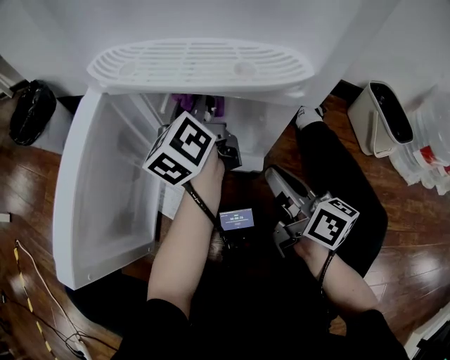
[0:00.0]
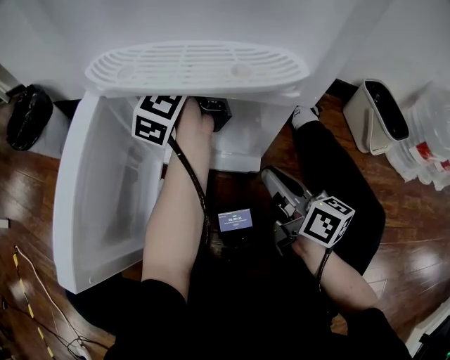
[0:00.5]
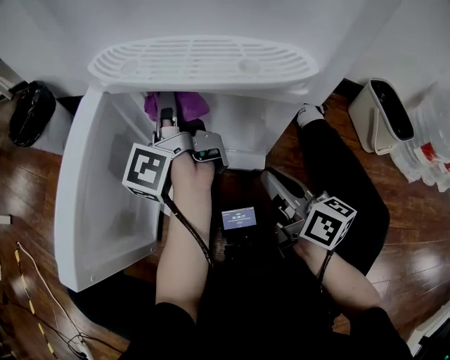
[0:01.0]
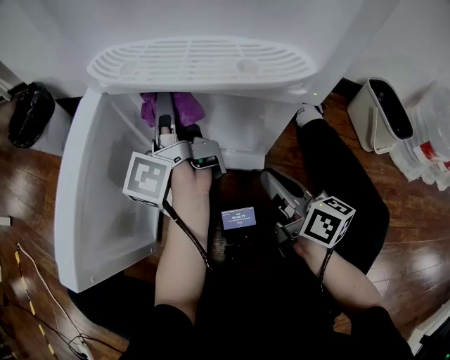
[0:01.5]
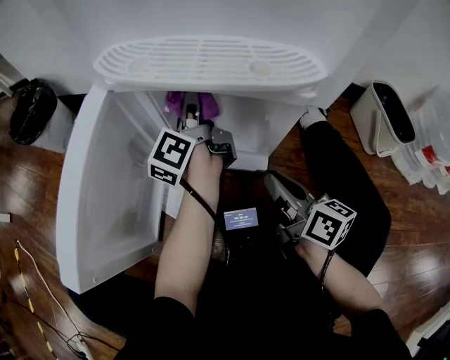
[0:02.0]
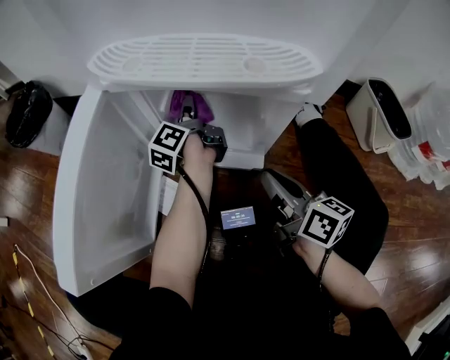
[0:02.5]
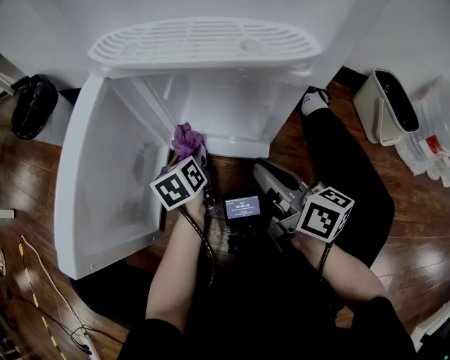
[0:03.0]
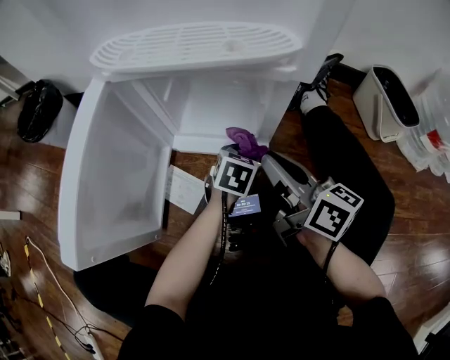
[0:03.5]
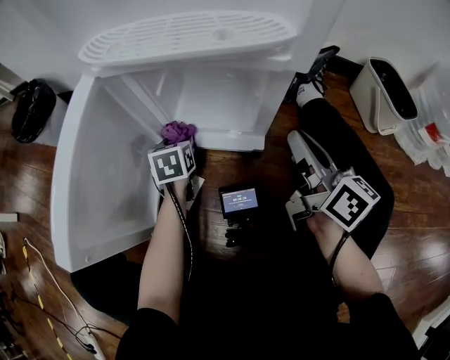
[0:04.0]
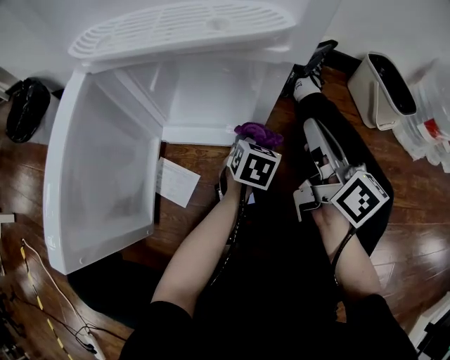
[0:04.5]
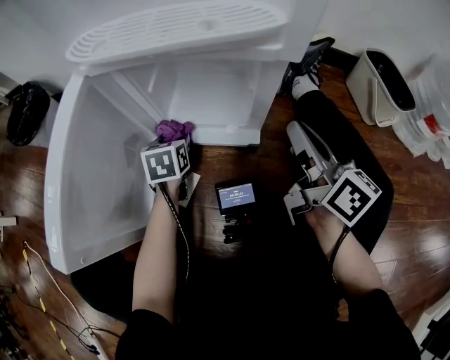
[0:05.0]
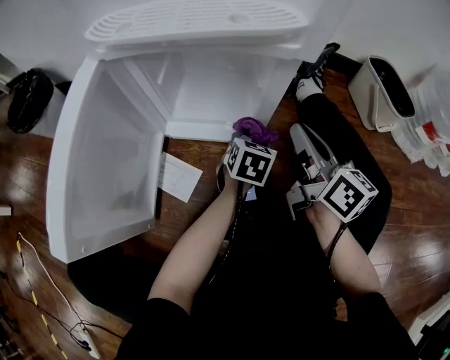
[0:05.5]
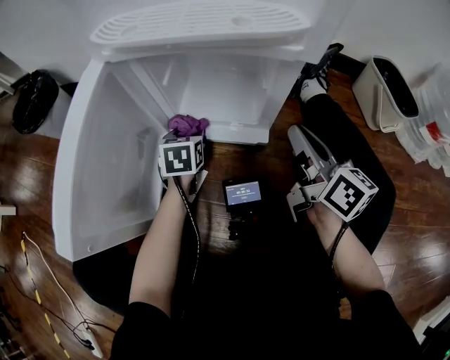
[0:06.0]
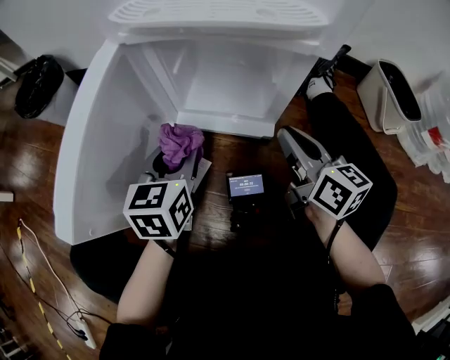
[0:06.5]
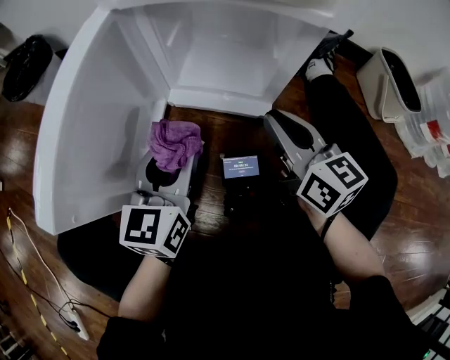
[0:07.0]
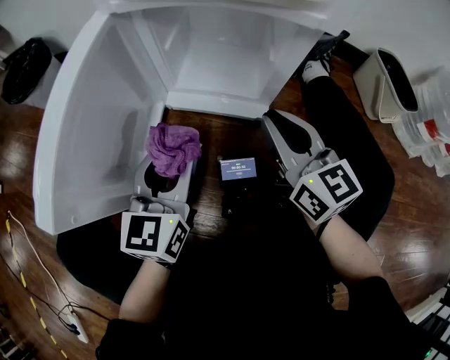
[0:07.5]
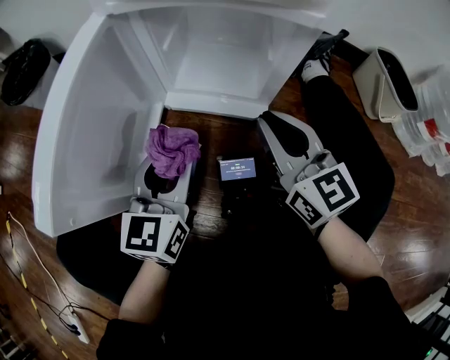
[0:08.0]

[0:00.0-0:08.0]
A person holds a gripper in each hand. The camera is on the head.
0.0 to 2.0 s: The left gripper heads downward, covering some 5 cm, moves approximately 10 cm forward and comes back, and rotates approximately 30 degrees.
2.0 to 4.0 s: The left gripper heads downward and backward, covering some 20 cm, and tips its fingers downward by about 50 degrees; the right gripper shifts about 10 cm upward and to the right.
4.0 to 6.0 s: The left gripper swings left and right, about 25 cm each way, with 3 reversals.
6.0 to 8.0 s: The right gripper shifts roughly 10 cm to the left, and changes its angle by some 30 degrees; the left gripper travels upward and backward by some 20 cm, and points its fingers about 30 degrees further upward.

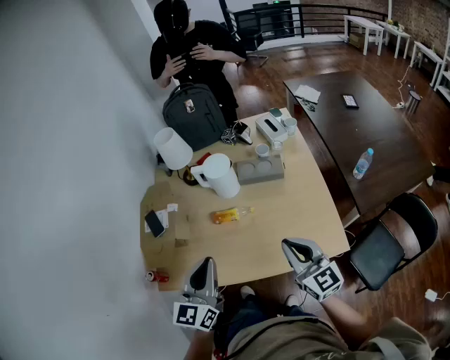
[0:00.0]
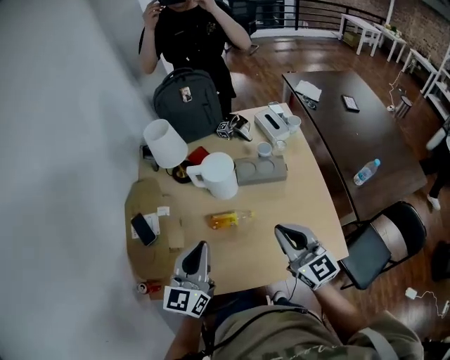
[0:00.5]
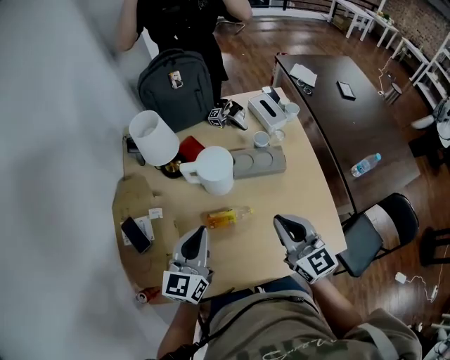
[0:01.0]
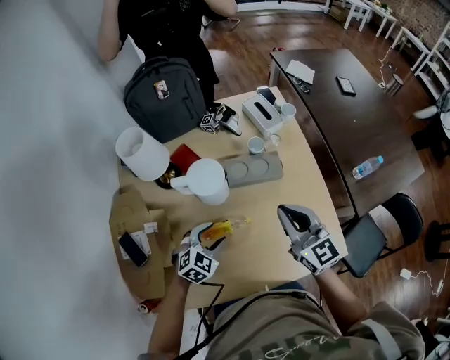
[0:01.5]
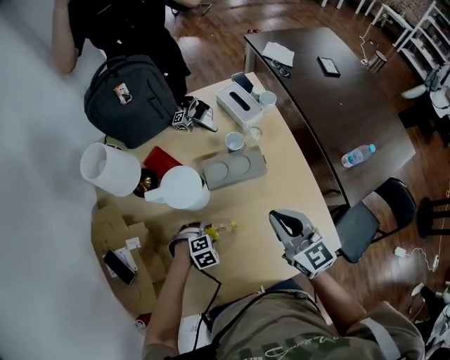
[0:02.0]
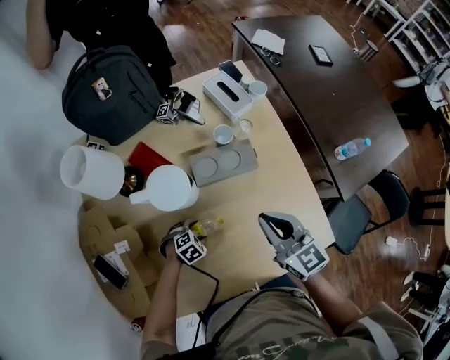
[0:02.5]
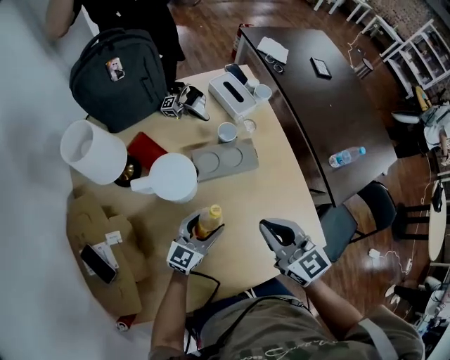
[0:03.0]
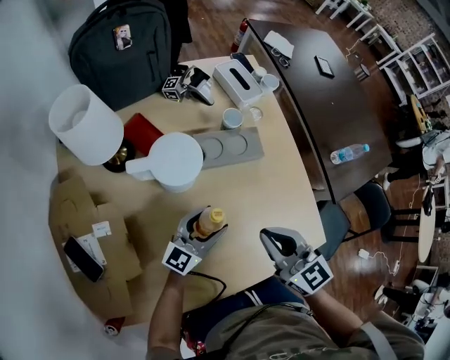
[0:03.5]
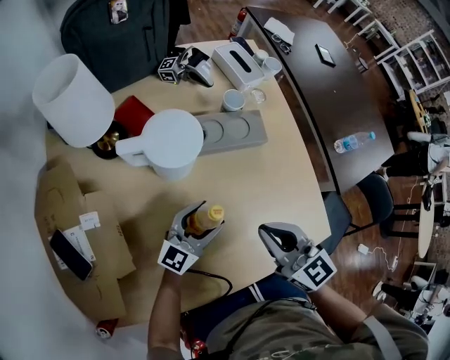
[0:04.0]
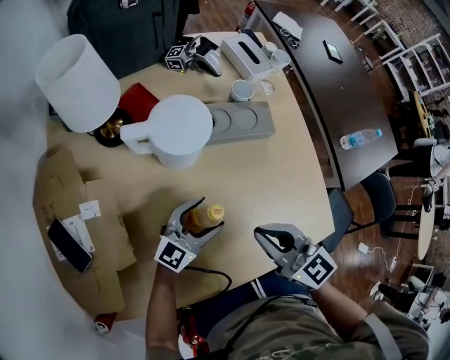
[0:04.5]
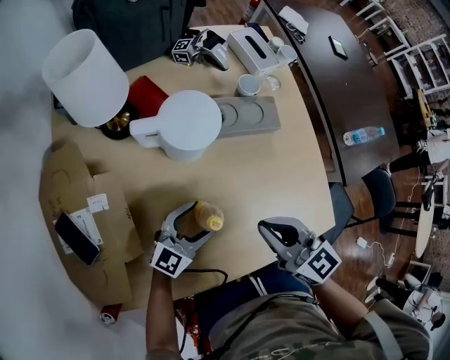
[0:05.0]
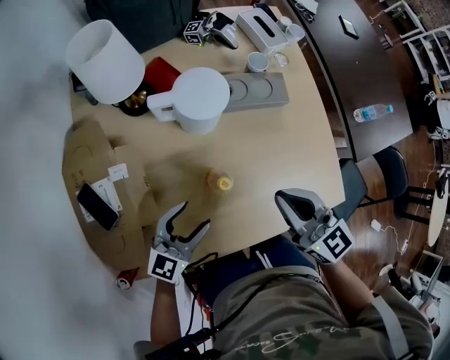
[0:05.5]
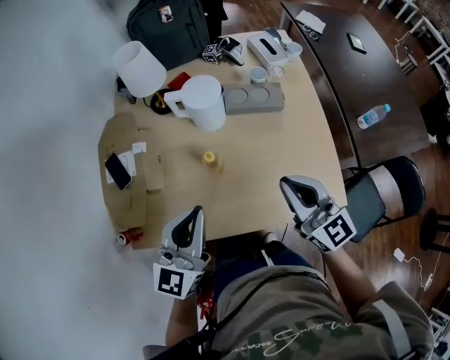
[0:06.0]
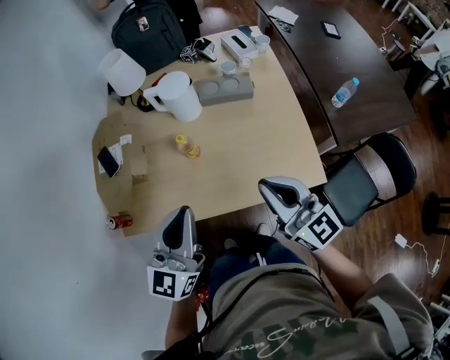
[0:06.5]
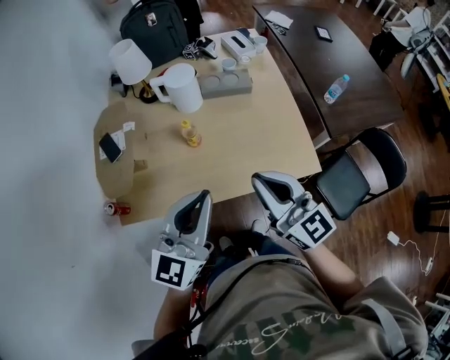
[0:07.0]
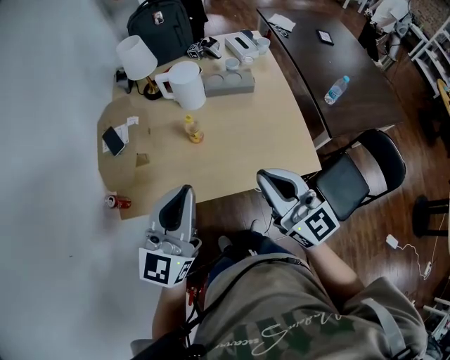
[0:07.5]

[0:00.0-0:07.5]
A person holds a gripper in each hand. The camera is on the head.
0.0 to 2.0 s: The left gripper heads downward, covering approximately 40 cm, tips its fingers downward by some 70 degrees, and opens its fingers, while the right gripper moves approximately 25 cm.
2.0 to 4.0 s: The left gripper shifts about 10 cm upward, and tips its fingers upward by about 80 degrees, while the right gripper changes place by some 15 cm.
4.0 to 5.5 s: The right gripper travels upward by about 5 cm; the left gripper travels to the left, backward and upward by roughly 15 cm.
5.5 to 7.5 s: The left gripper is displaced upward and backward by approximately 40 cm, changes its angle by roughly 30 degrees, and closes. Meanwhile the right gripper goes approximately 30 cm backward and upward.

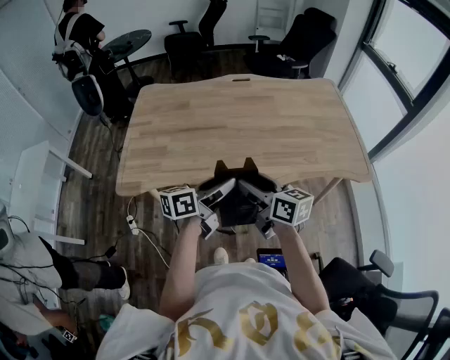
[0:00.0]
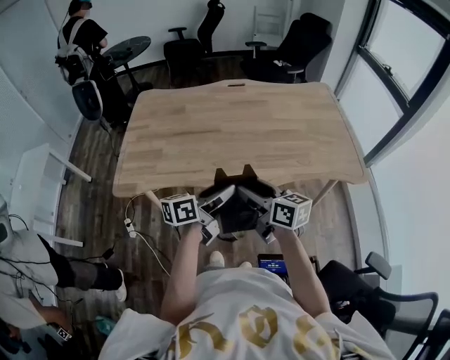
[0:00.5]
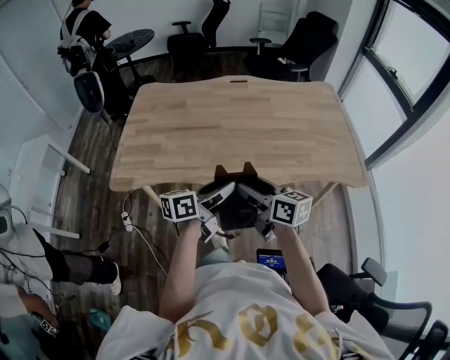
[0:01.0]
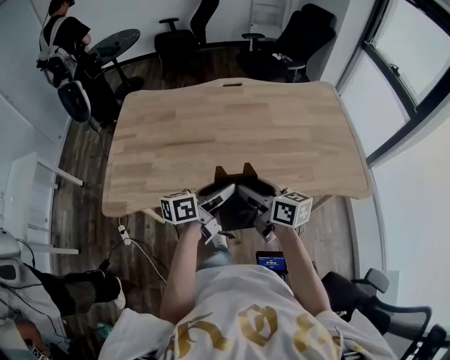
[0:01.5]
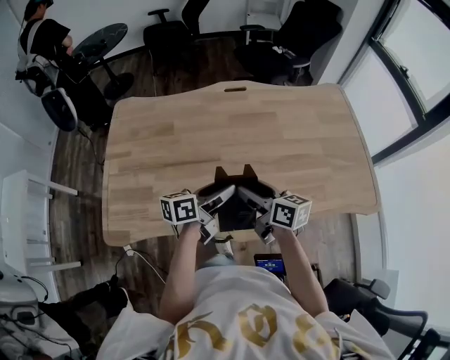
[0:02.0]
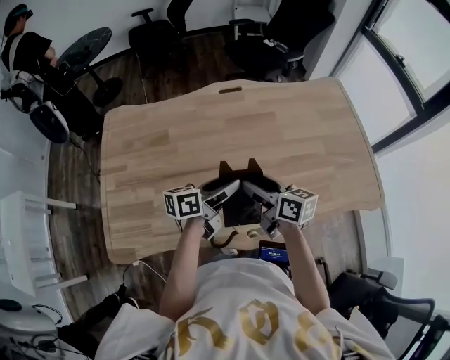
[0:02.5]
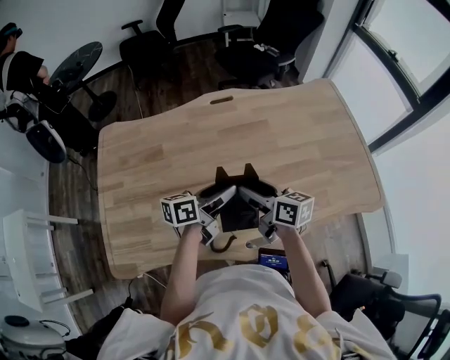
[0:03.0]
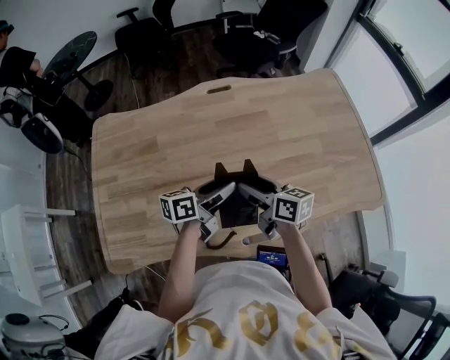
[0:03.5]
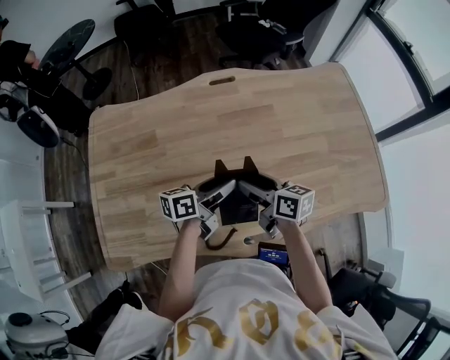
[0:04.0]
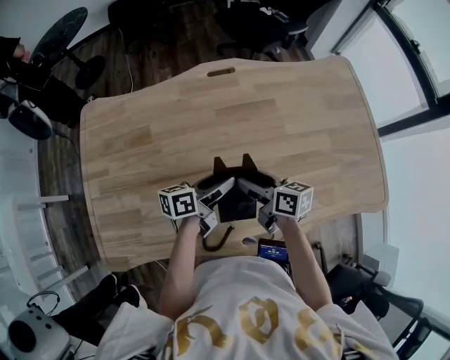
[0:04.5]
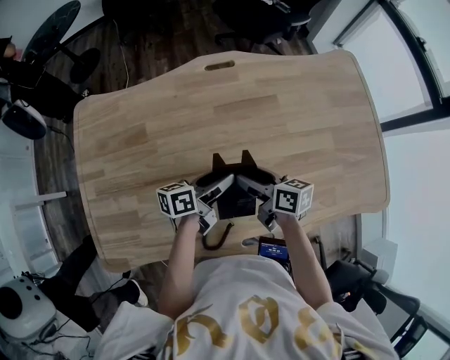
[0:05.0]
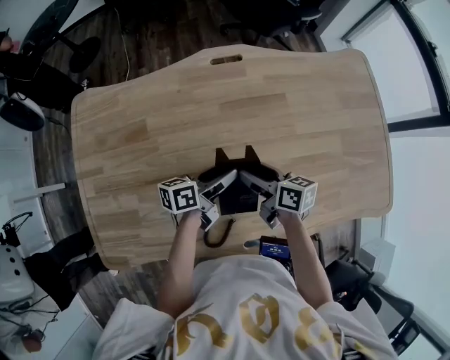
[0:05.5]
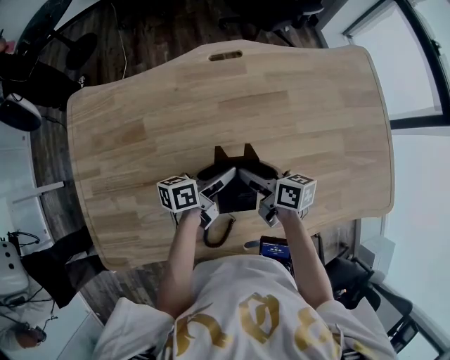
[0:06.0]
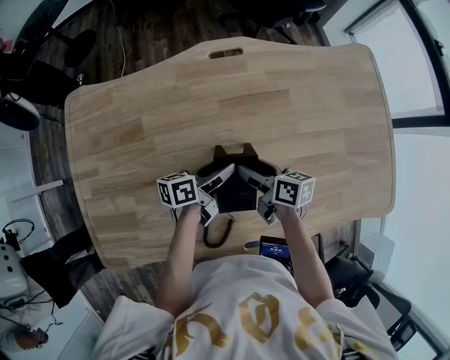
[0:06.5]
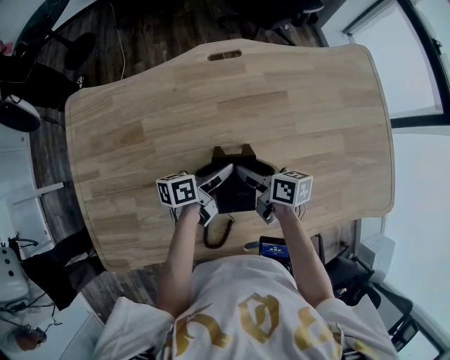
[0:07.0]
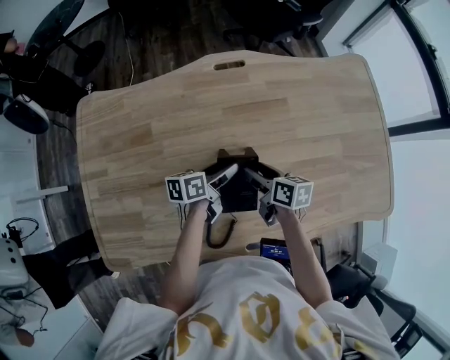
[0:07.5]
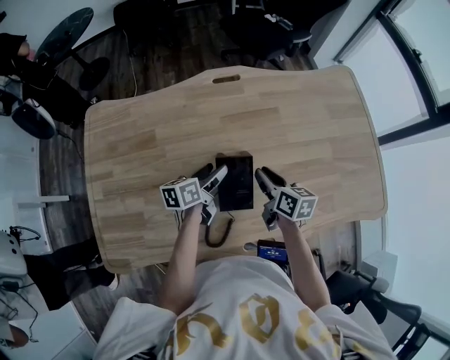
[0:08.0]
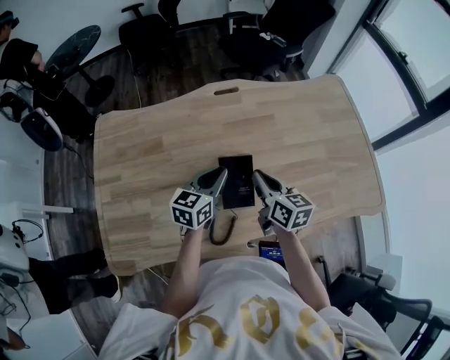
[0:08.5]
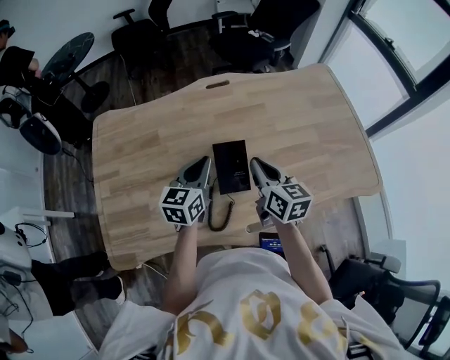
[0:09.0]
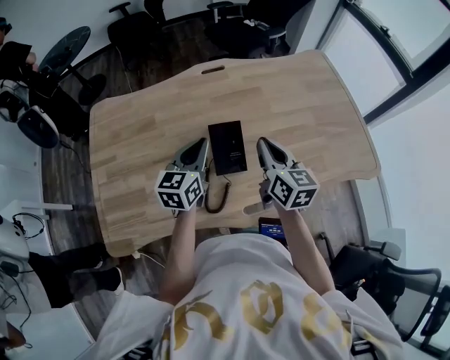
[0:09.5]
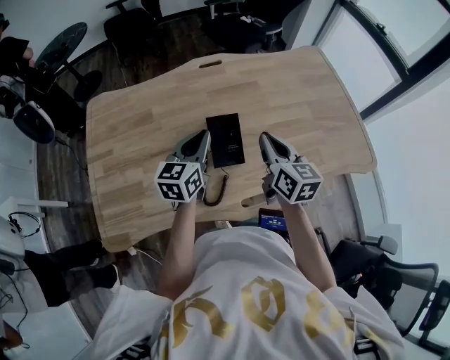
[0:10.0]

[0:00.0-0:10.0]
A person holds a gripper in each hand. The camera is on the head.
0.0 to 2.0 s: Both grippers travel together forward, roughly 25 cm.
2.0 to 4.0 s: The grippers both shift forward and downward by approximately 15 cm.
4.0 to 6.0 s: Both grippers move downward and forward, some 10 cm.
6.0 to 8.0 s: The right gripper shifts approximately 5 cm to the right, and closes up.
8.0 to 10.0 s: The grippers both shift upward and backward by about 20 cm. The left gripper turns by roughly 40 degrees, and closes. Meanwhile the right gripper swivels about 30 degrees.

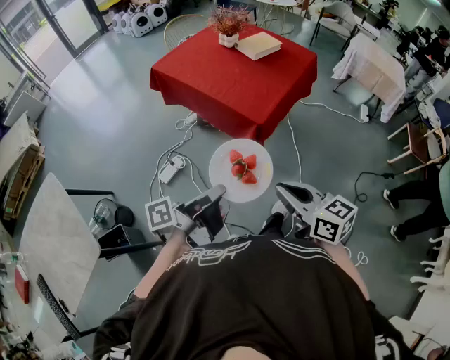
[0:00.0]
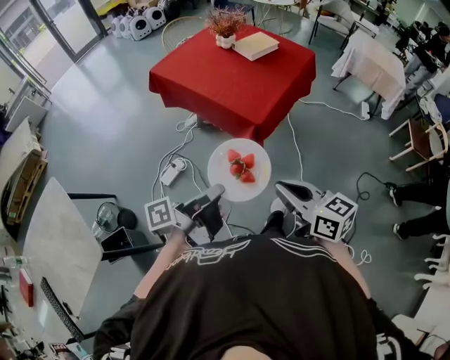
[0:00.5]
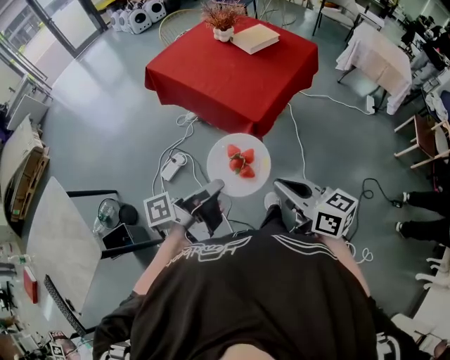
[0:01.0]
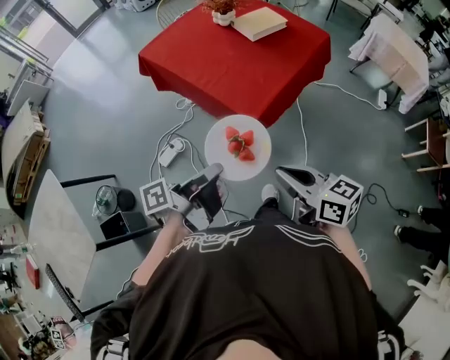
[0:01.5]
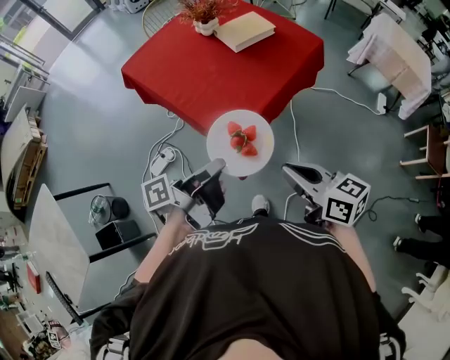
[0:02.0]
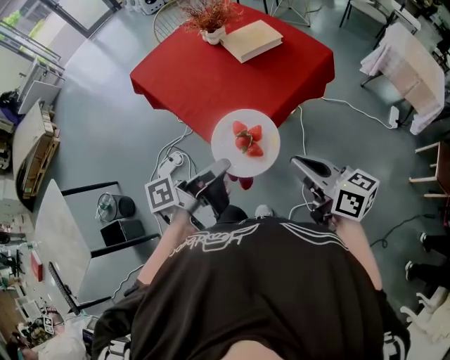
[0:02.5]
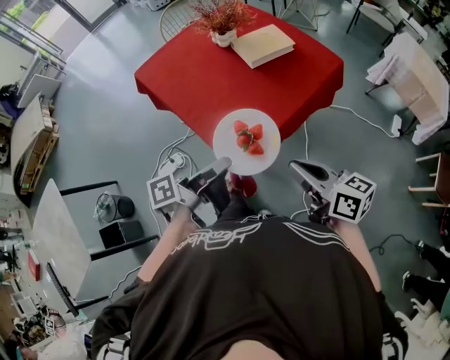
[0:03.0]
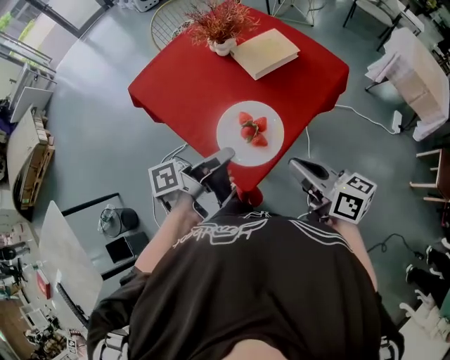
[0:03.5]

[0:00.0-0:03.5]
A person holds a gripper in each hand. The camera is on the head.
0.0 to 2.0 s: The right gripper ends up roughly 30 cm from where it was.
2.0 to 3.5 s: The right gripper changes place by about 15 cm.
